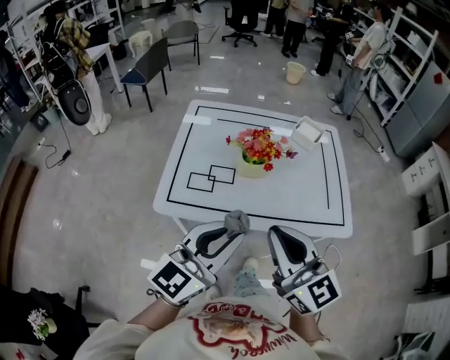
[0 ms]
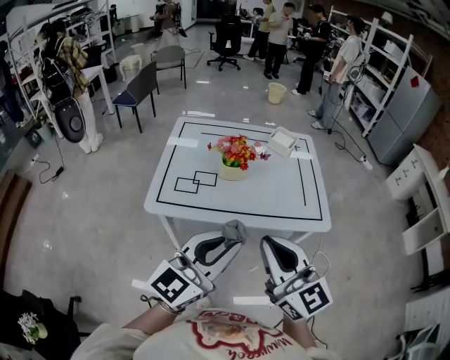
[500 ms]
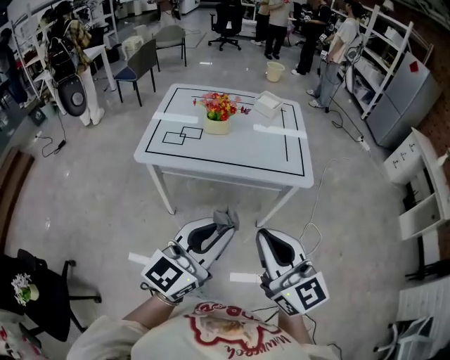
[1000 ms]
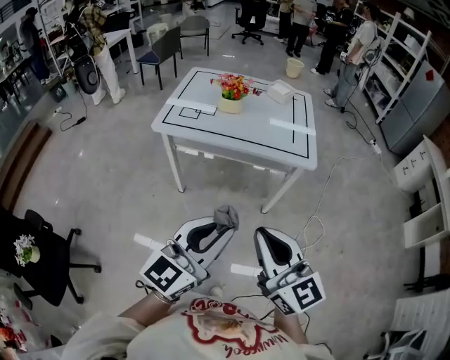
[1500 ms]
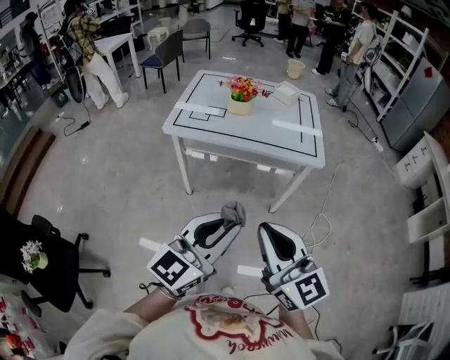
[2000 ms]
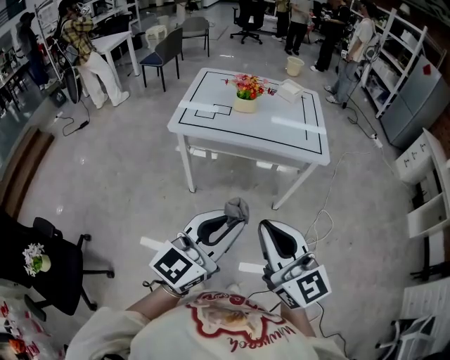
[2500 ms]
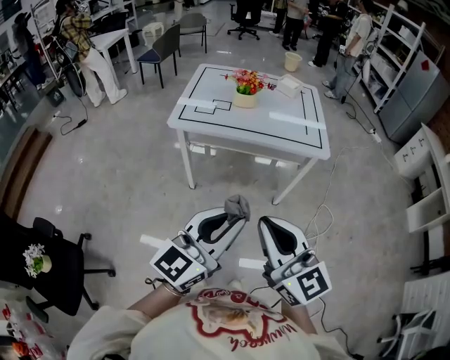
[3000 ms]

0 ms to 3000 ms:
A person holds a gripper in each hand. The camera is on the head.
0 ms to 1500 ms: Both grippers travel together backward and to the right, some 40 cm.
1500 ms to 3000 ms: Both grippers travel together to the left, some 10 cm.

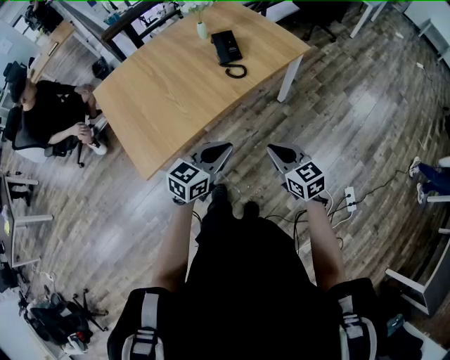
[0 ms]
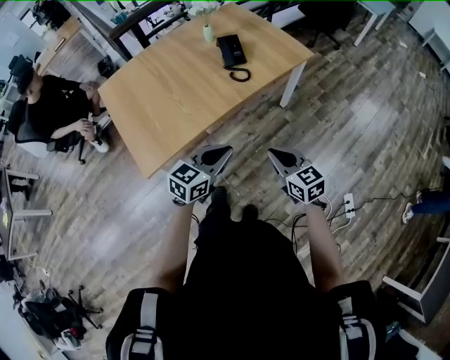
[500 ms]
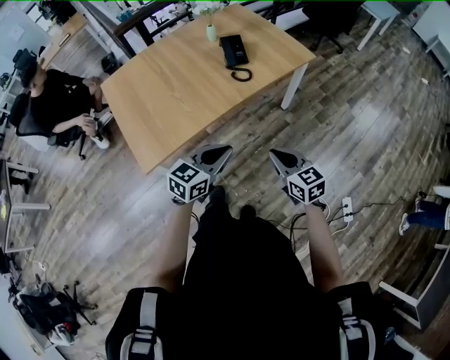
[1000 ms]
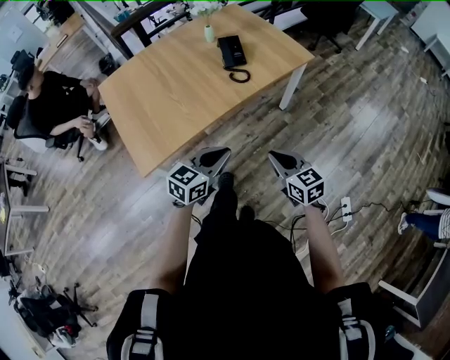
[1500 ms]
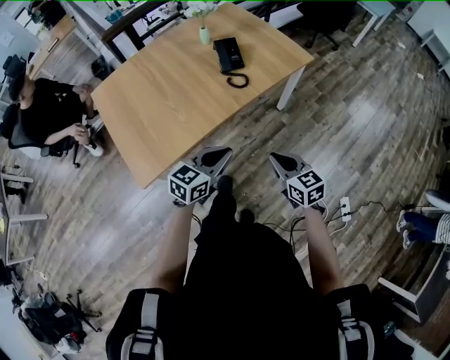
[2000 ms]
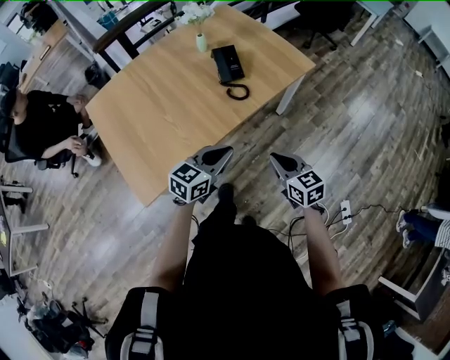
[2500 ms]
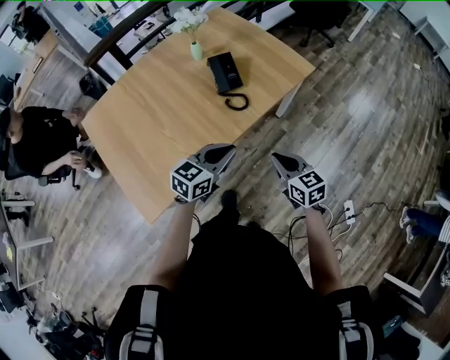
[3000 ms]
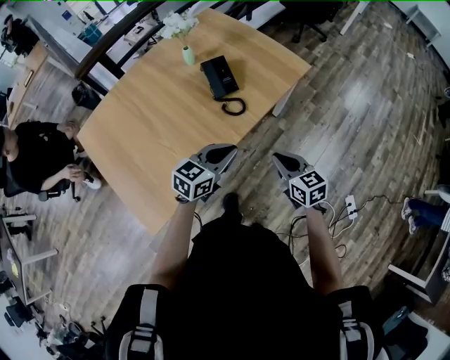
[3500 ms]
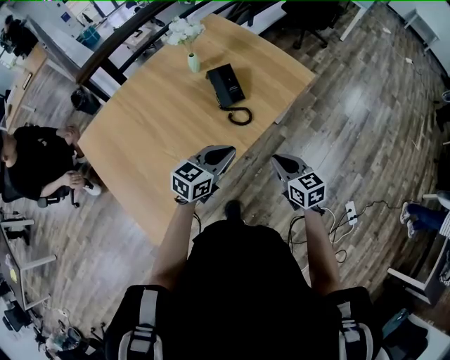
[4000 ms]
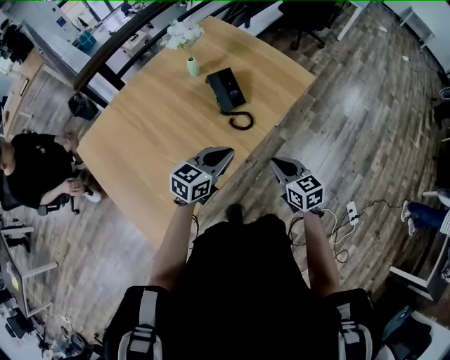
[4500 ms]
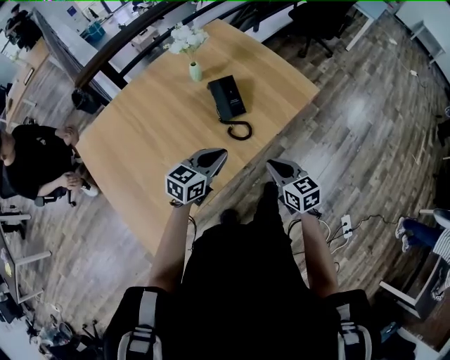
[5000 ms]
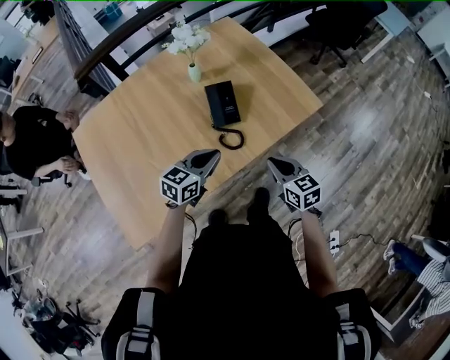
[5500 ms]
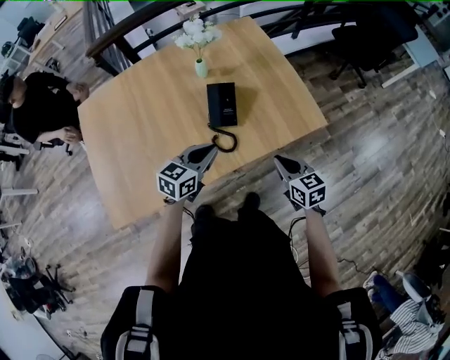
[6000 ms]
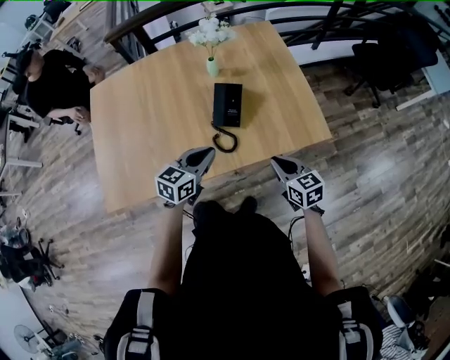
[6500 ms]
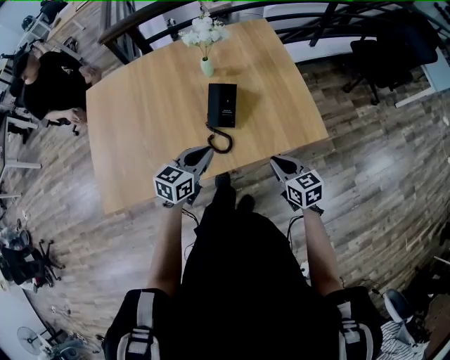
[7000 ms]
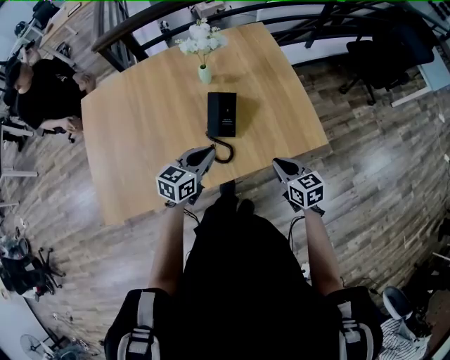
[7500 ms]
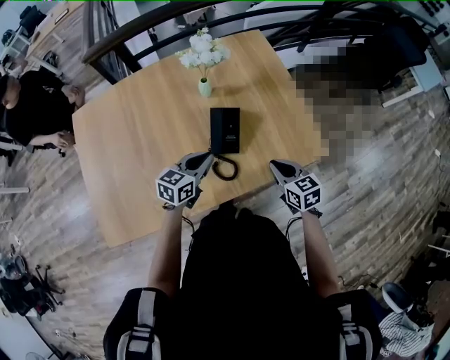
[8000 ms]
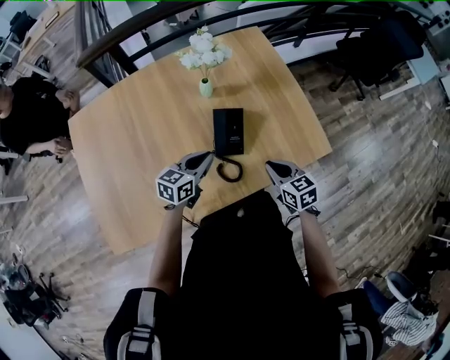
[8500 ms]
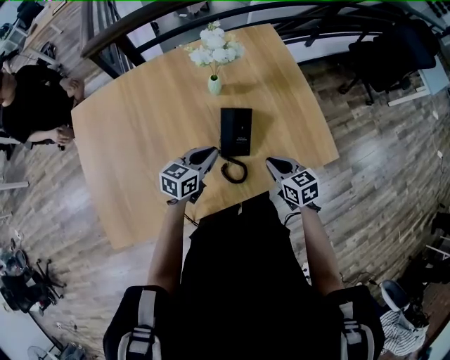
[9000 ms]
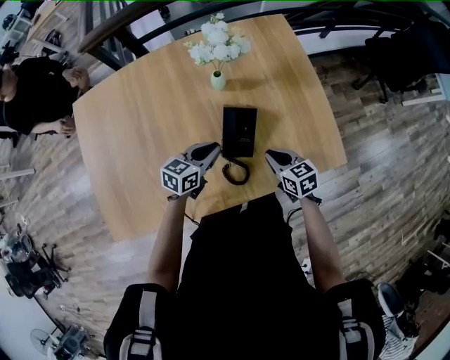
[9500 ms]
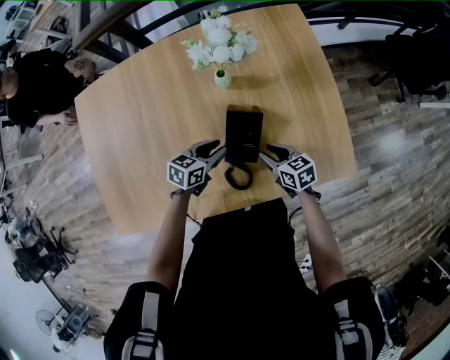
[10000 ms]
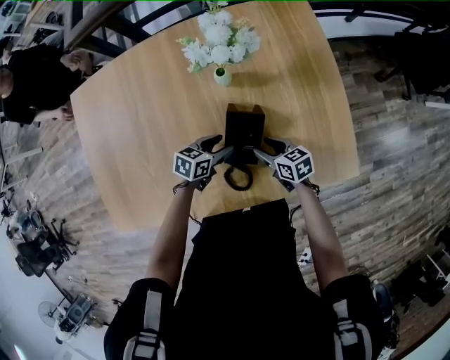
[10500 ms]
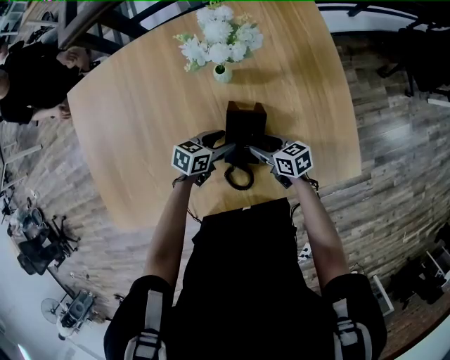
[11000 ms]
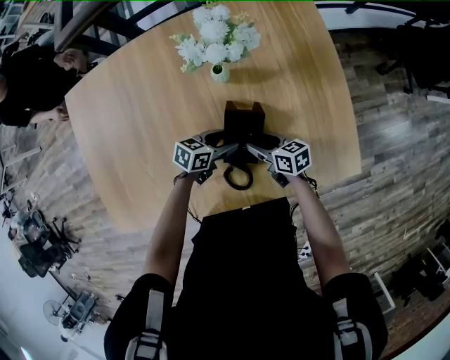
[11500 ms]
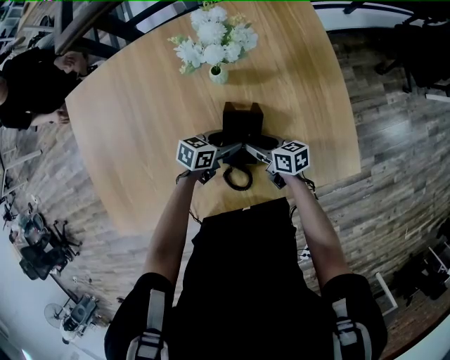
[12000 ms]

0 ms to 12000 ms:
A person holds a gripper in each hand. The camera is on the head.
0 ms to 2000 ms: The grippers move only a little.
2000 ms to 4000 ms: Both grippers move forward, approximately 20 cm.
4000 ms to 6000 ms: The left gripper changes place by about 15 cm, and changes its angle by approximately 30 degrees, while the right gripper shifts by about 20 cm, and swivels roughly 20 degrees.
6000 ms to 8000 ms: The grippers both shift forward by roughly 10 cm.
8000 ms to 10000 ms: The right gripper heads downward, forward and to the left, covering roughly 20 cm, rotates some 20 degrees, and opens. Meanwhile the left gripper travels downward and forward by some 15 cm.
10000 ms to 12000 ms: The right gripper moves approximately 5 cm, changes its angle by about 20 degrees, and opens. Meanwhile the left gripper shifts about 5 cm downward, and opens its fingers.

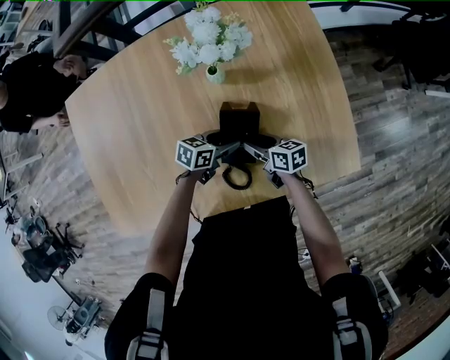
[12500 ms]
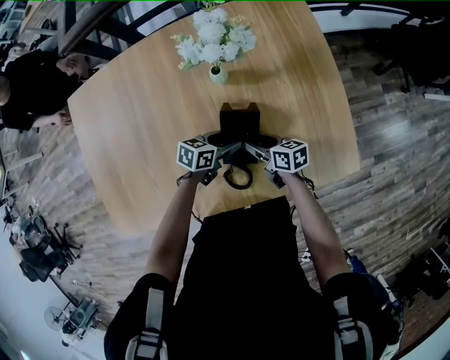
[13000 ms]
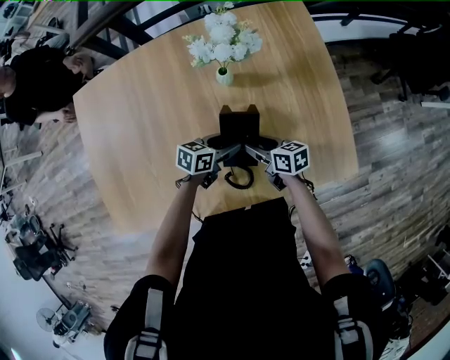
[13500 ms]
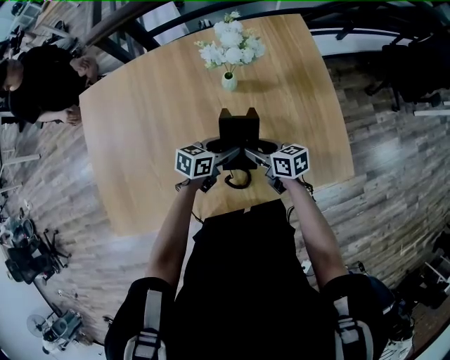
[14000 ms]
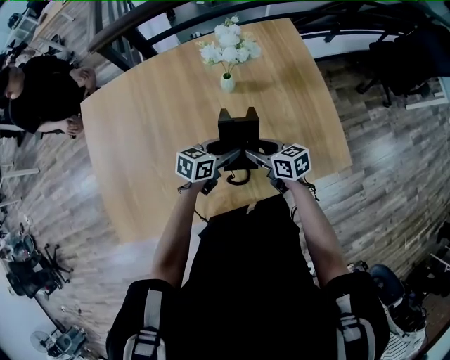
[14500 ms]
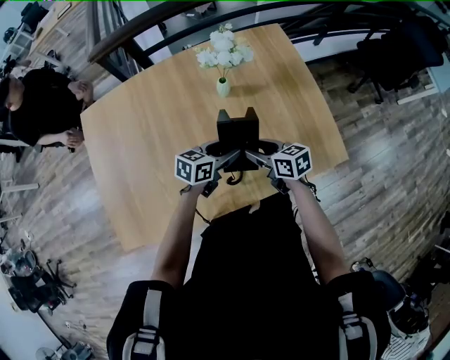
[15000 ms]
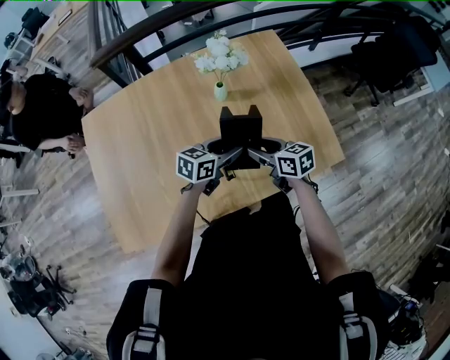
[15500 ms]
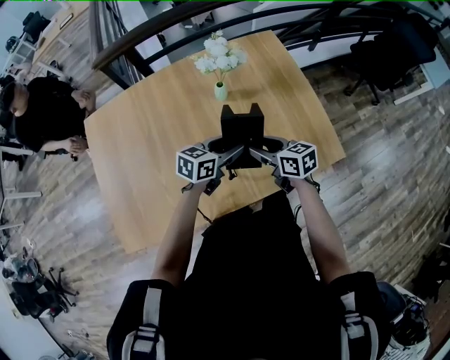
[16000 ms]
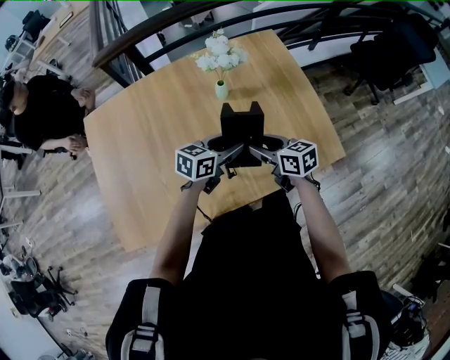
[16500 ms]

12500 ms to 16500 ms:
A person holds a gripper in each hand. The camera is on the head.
12500 ms to 14500 ms: The two grippers go about 10 cm upward.
14500 ms to 16500 ms: The grippers both shift upward by roughly 10 cm.

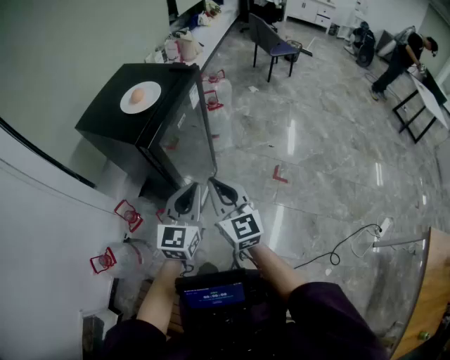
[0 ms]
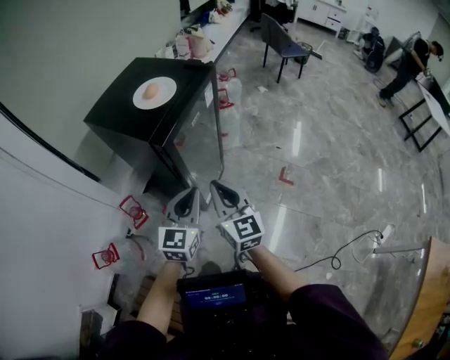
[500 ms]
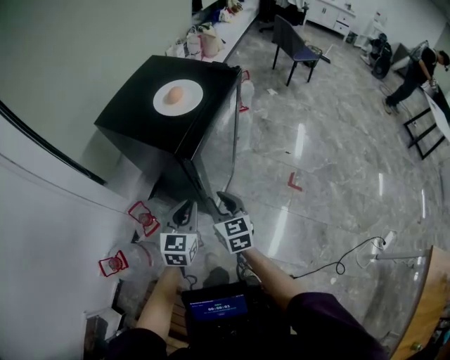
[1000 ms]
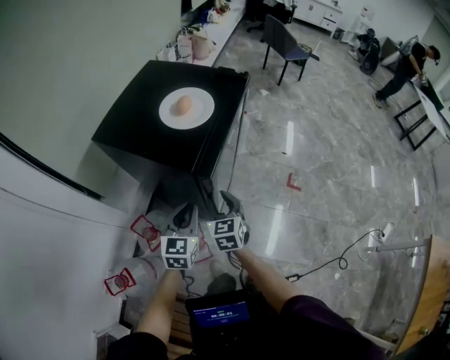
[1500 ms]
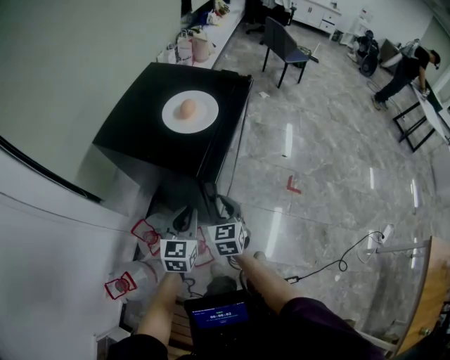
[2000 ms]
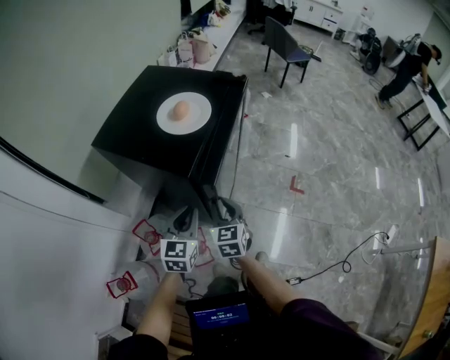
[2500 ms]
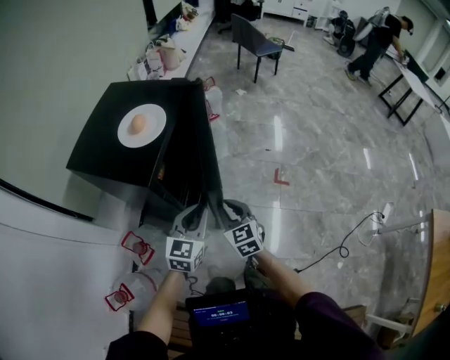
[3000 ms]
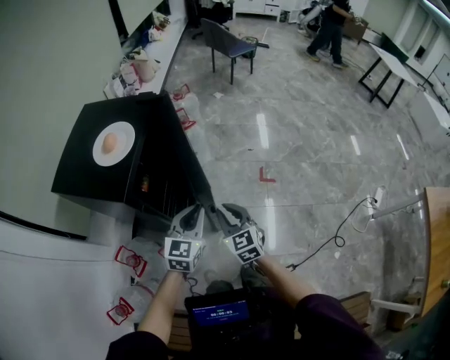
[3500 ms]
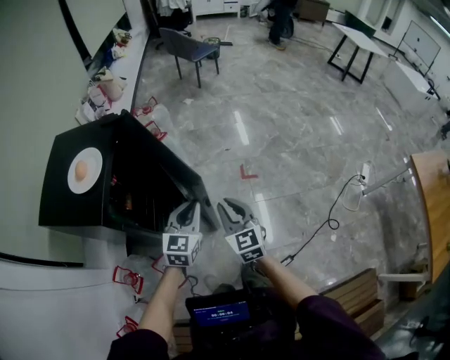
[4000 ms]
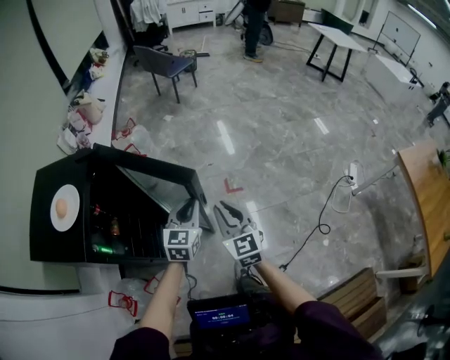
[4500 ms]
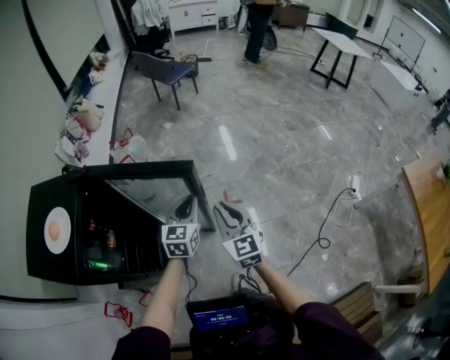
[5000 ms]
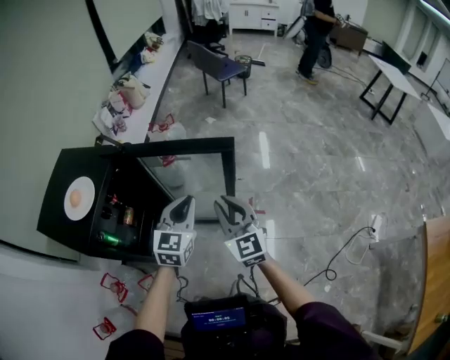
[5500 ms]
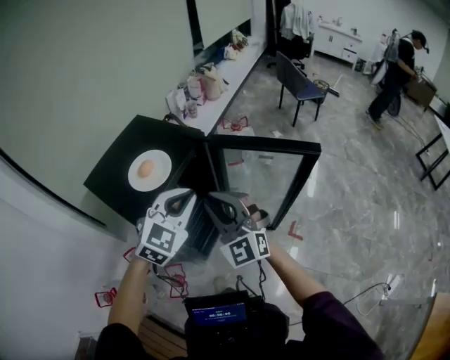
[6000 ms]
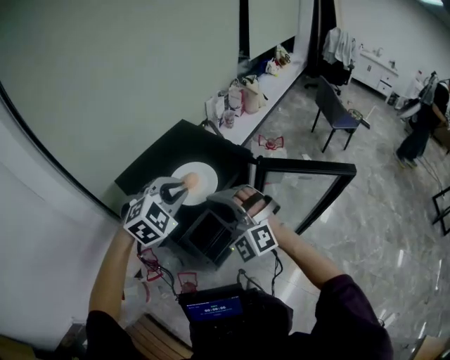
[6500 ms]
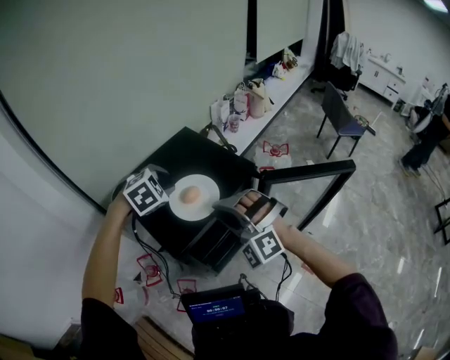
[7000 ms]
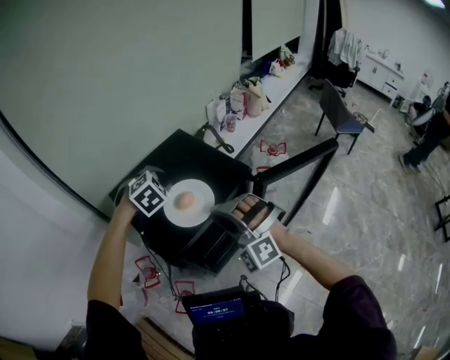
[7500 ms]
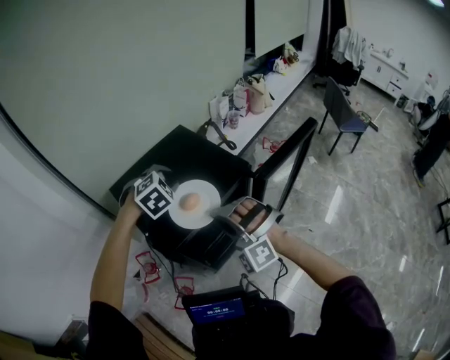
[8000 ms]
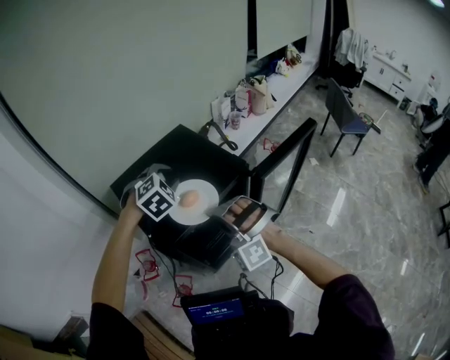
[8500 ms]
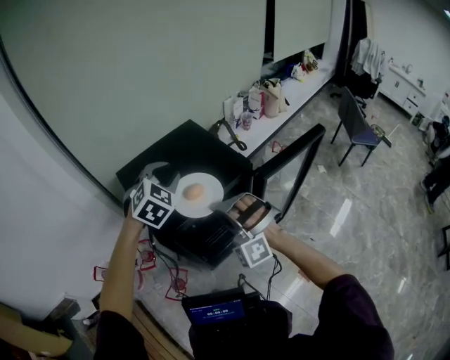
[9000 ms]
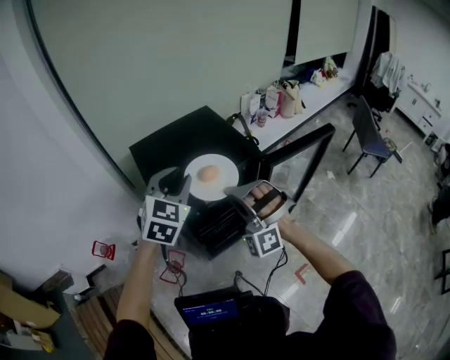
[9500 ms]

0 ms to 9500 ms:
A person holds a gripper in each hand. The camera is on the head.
0 ms to 2000 ms: The right gripper heads downward, to the left and forward, covering about 25 cm, and rotates approximately 30 degrees. The left gripper moves to the left, downward and forward, some 25 cm.
2000 ms to 4000 ms: Both grippers move to the right, approximately 30 cm. The left gripper rotates roughly 30 degrees.
4000 ms to 5500 ms: The grippers both shift forward and upward by approximately 15 cm.
5500 ms to 7500 ms: The right gripper shifts by some 40 cm, and rotates around the line of its fingers by about 70 degrees, counterclockwise from behind. Meanwhile the left gripper changes place by roughly 50 cm, tips its fingers downward by about 40 degrees, and opens up.
7500 ms to 9500 ms: The left gripper is displaced backward and upward by approximately 20 cm, and tilts its fingers about 30 degrees upward, while the right gripper shifts approximately 5 cm backward.
